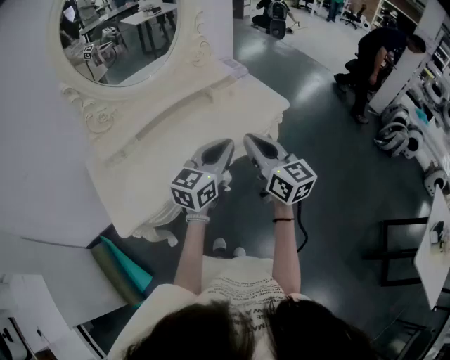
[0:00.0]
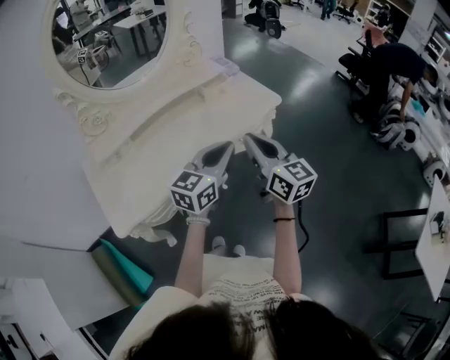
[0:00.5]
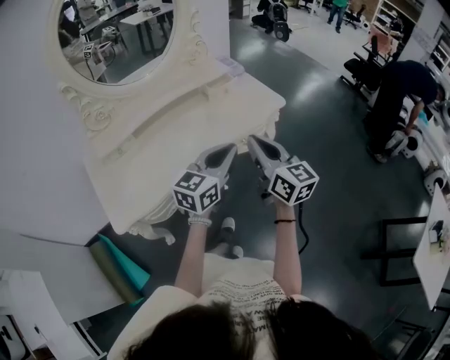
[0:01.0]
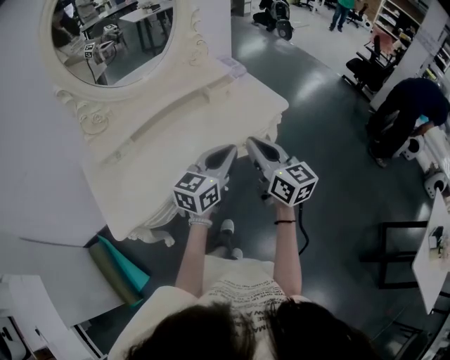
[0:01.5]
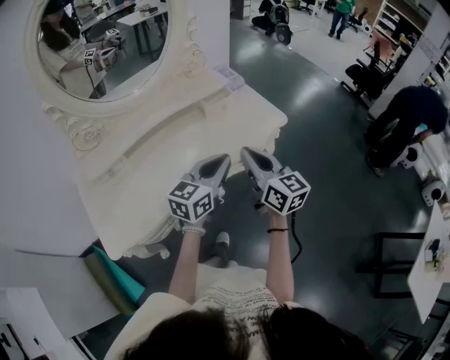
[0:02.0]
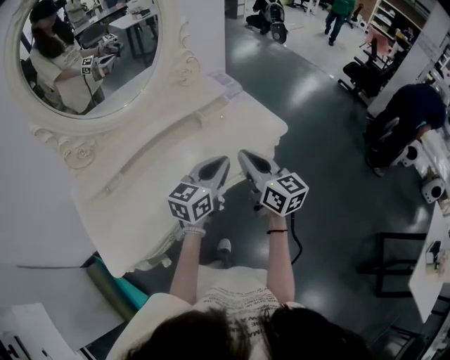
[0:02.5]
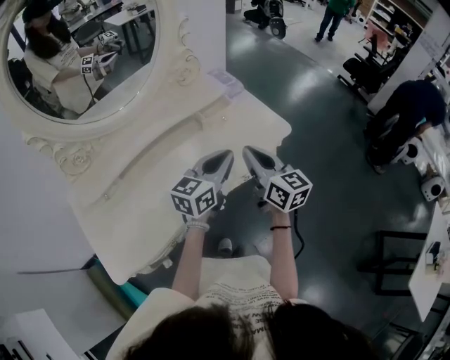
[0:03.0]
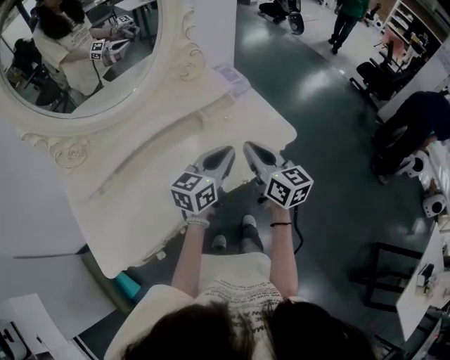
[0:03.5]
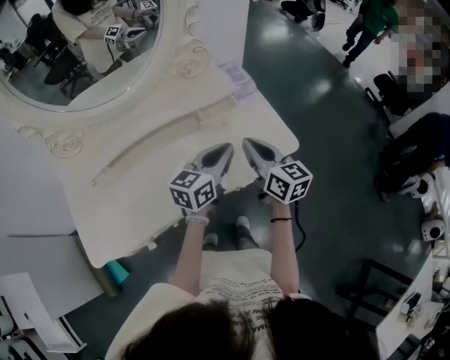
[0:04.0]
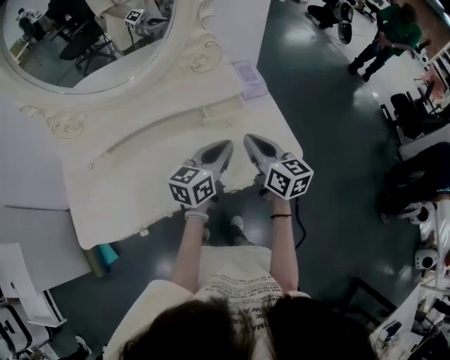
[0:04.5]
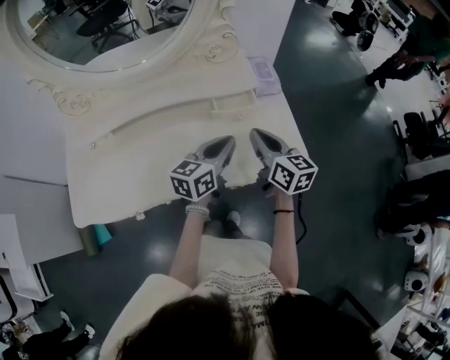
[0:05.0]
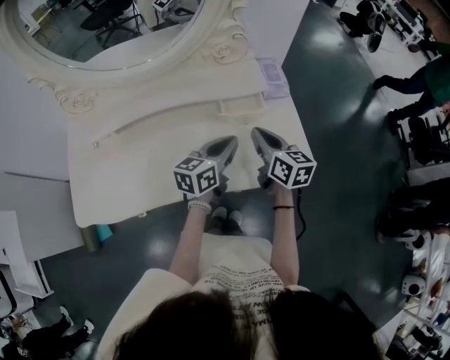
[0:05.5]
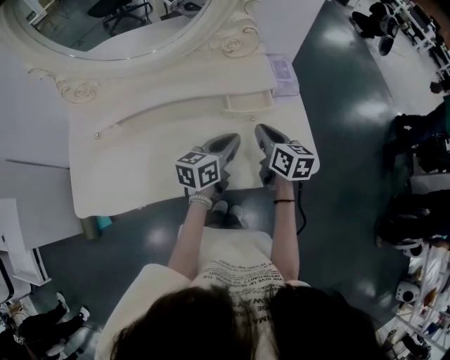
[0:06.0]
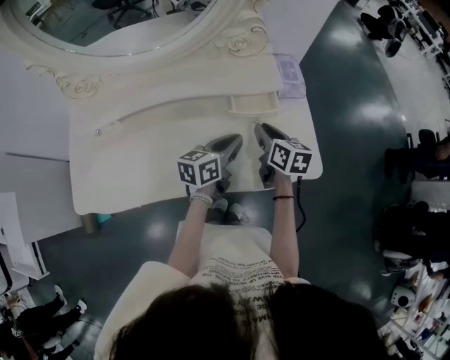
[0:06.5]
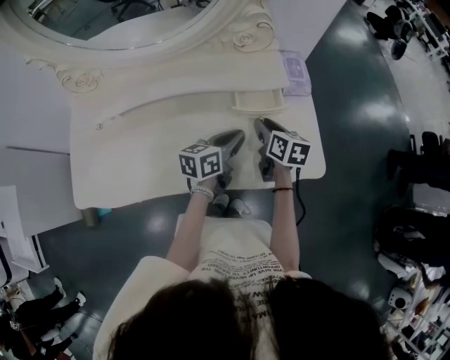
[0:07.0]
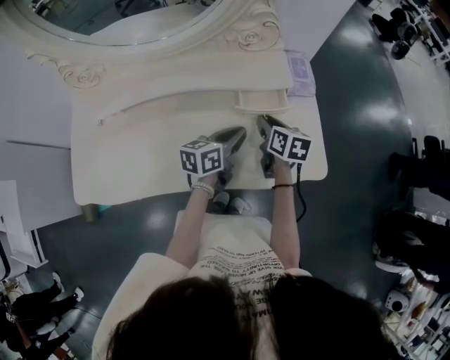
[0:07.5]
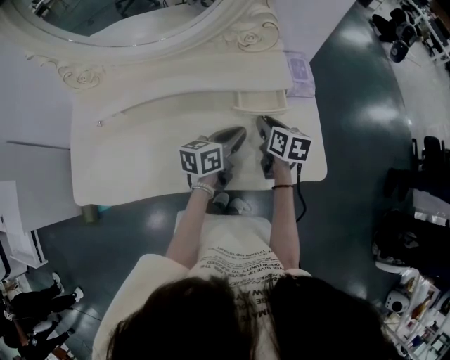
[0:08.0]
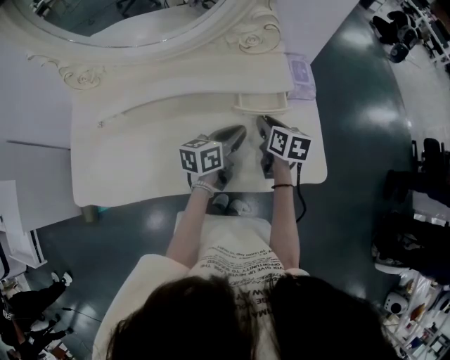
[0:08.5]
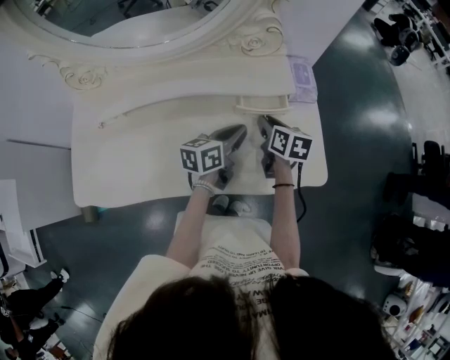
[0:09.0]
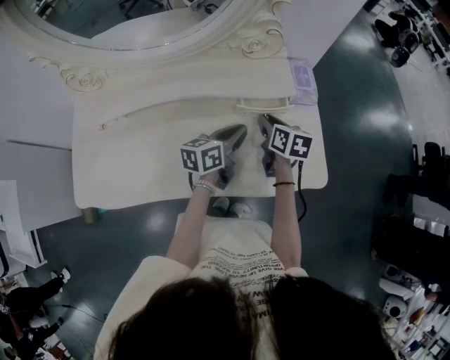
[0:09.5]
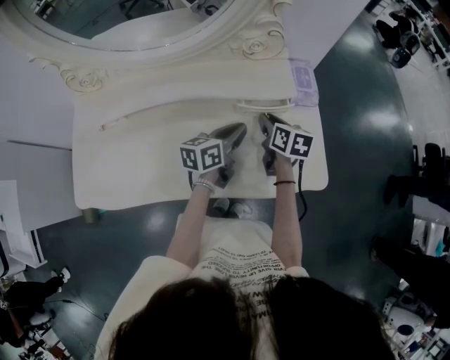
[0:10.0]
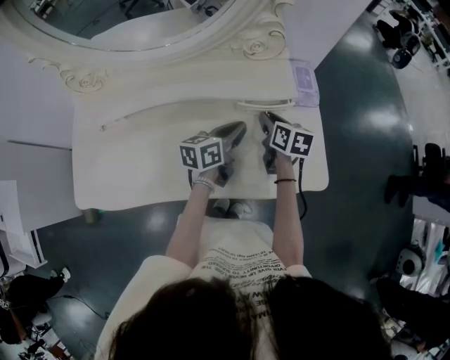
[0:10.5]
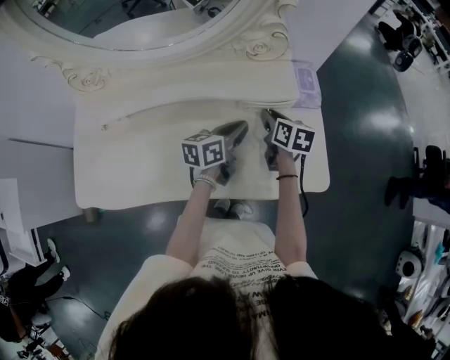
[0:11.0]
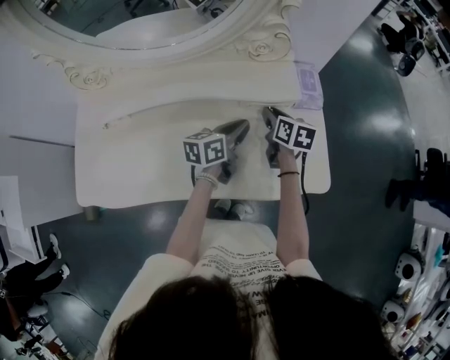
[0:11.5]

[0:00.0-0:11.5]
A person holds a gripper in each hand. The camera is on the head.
0.0 to 2.0 s: The grippers both shift forward by roughly 10 cm.
2.0 to 4.0 s: Both grippers travel together forward, roughly 20 cm.
4.0 to 6.0 s: The left gripper moves downward and forward, approximately 10 cm, and turns by about 20 degrees; the right gripper is displaced forward and downward by roughly 15 cm.
6.0 to 7.5 s: The right gripper is displaced downward by about 5 cm.
7.5 to 9.5 s: The grippers make only small movements.
9.5 to 11.5 s: The grippers stay close to where they were, moving slightly.

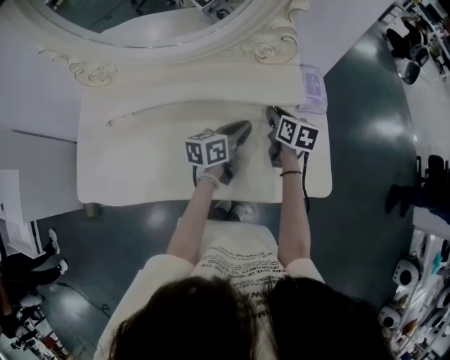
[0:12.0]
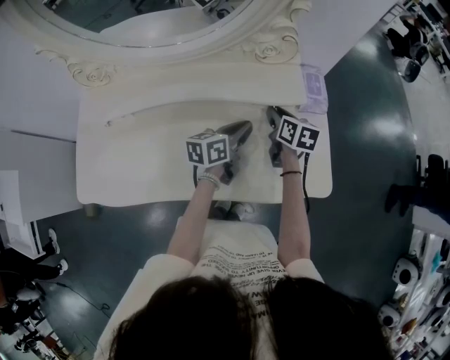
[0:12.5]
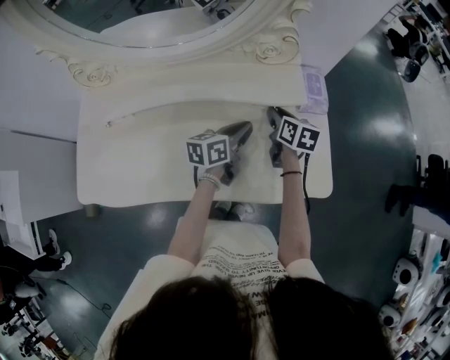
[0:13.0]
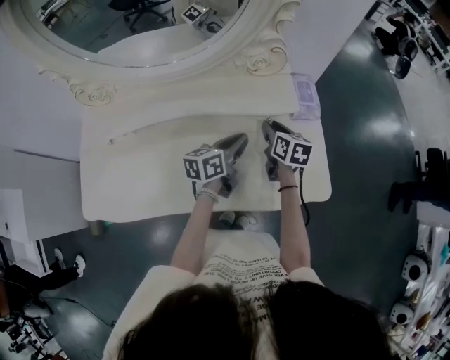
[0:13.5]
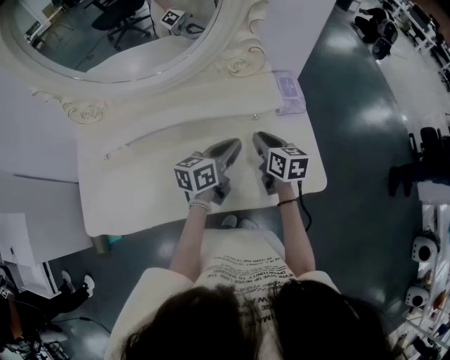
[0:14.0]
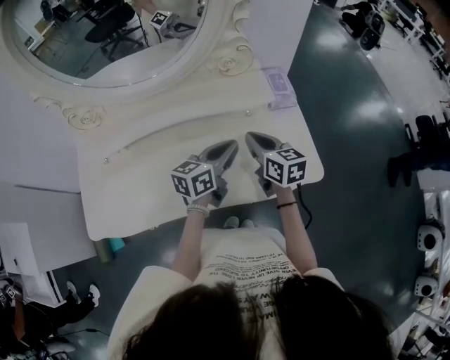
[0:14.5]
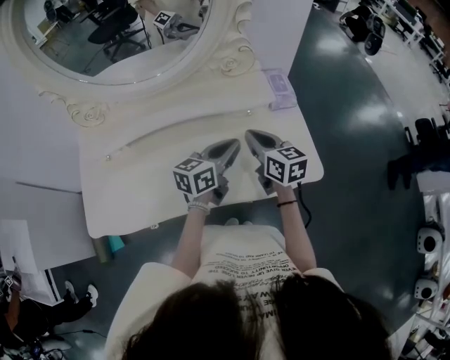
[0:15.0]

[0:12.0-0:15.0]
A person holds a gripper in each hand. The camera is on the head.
12.0 to 13.5 s: The grippers move only a little.
13.5 to 15.0 s: The left gripper travels backward and upward by approximately 10 cm. The right gripper shifts approximately 15 cm backward and upward, and closes its fingers.

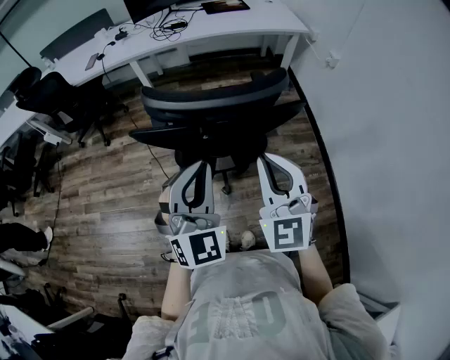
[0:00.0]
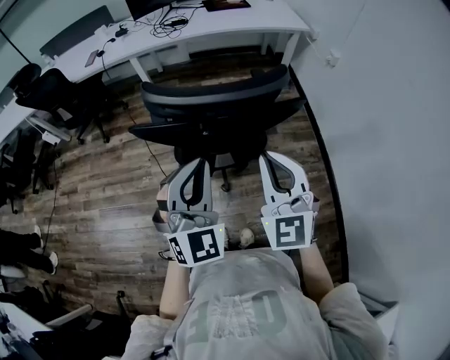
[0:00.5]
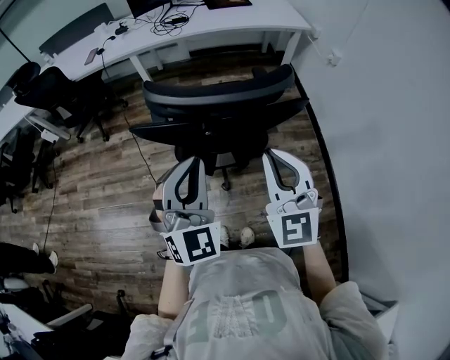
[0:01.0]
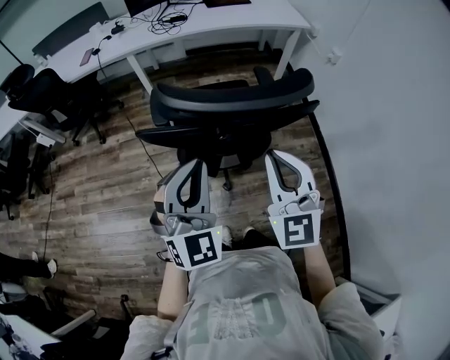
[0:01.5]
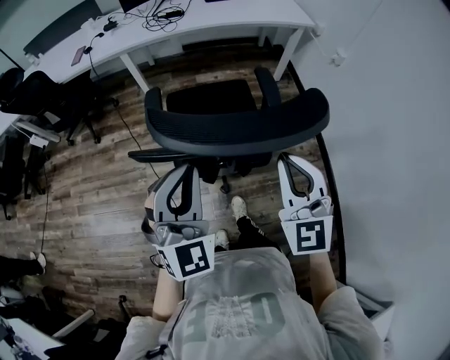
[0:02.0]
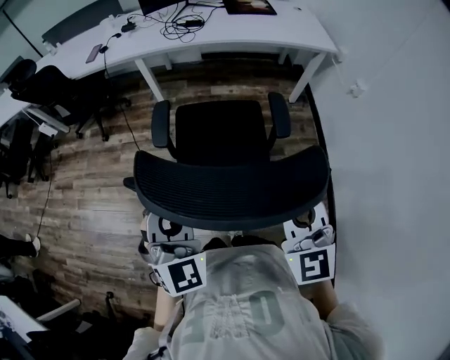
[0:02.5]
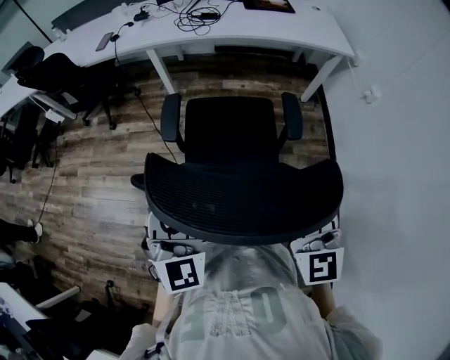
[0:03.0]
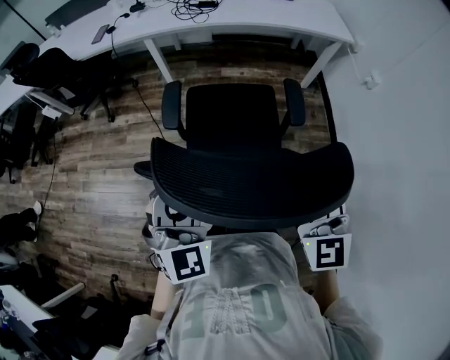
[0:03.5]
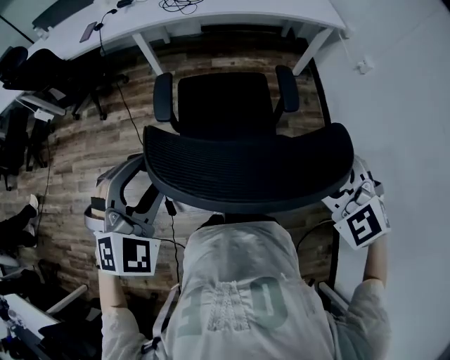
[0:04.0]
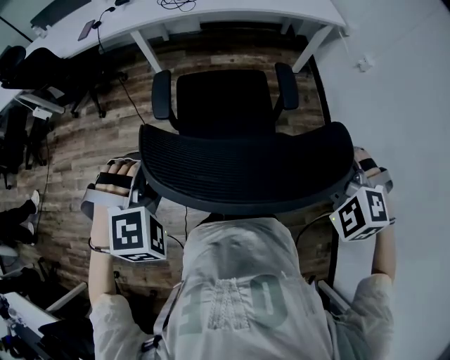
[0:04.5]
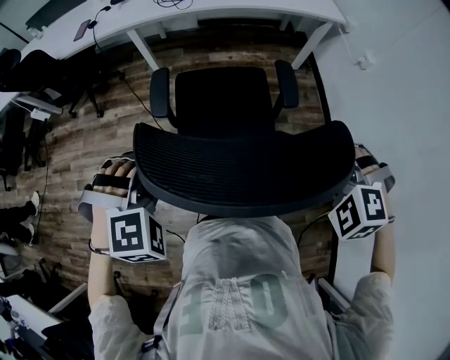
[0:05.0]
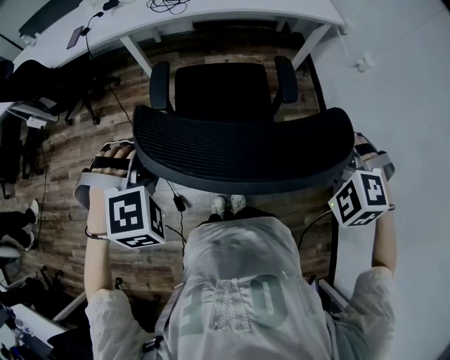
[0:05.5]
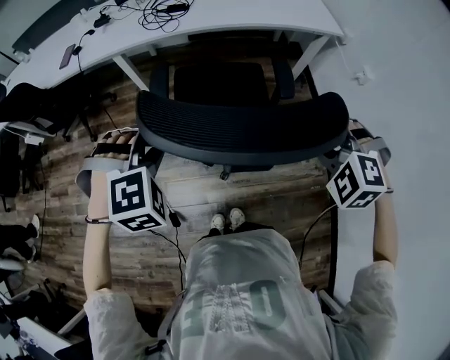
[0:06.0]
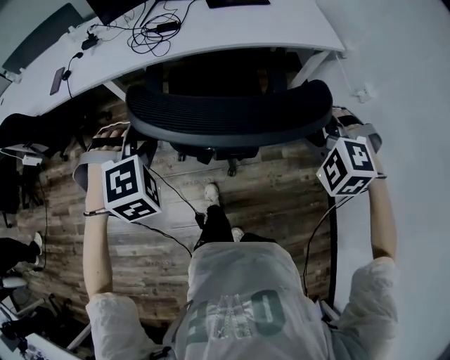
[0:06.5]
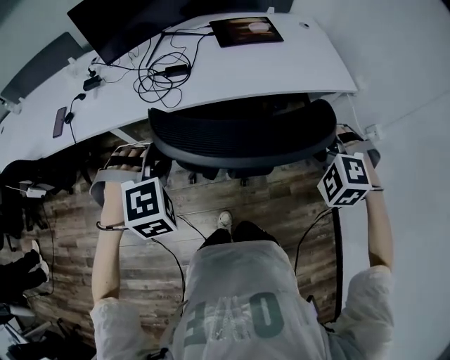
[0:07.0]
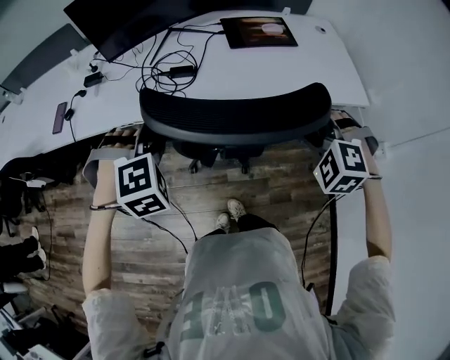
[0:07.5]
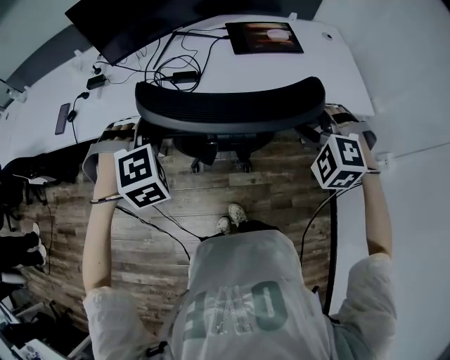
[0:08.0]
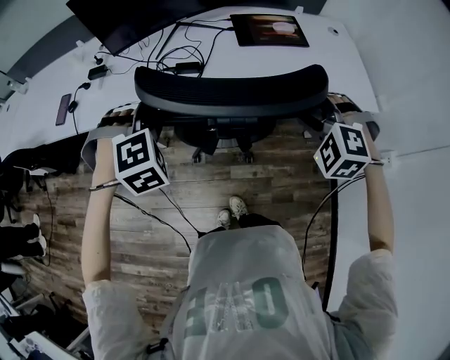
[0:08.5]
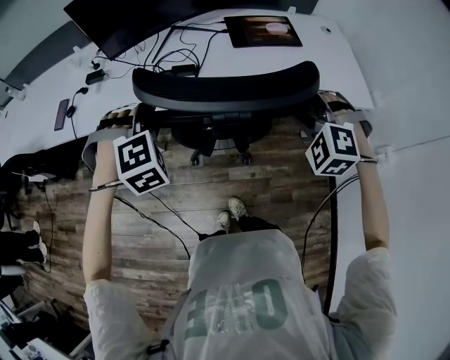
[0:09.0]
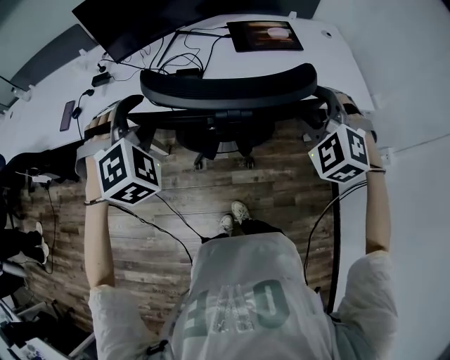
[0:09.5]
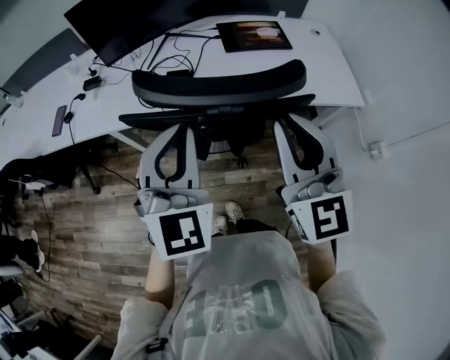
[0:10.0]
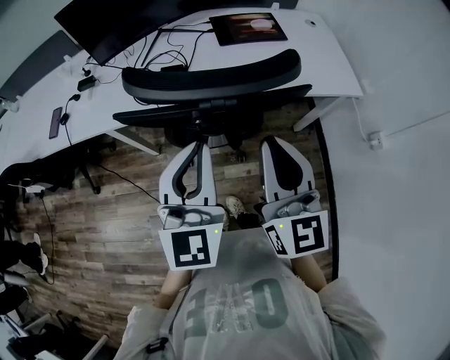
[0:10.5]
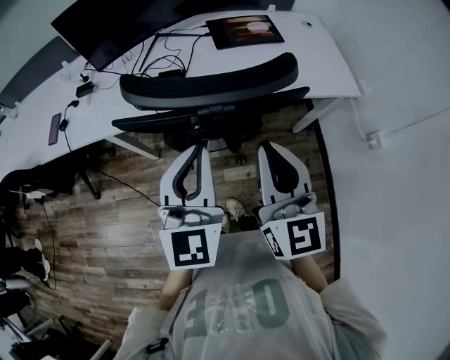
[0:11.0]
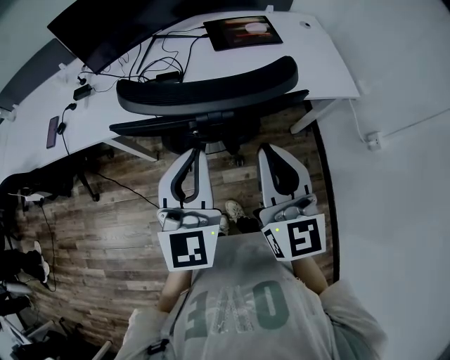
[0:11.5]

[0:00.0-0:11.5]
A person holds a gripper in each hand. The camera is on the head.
0.0 to 2.0 s: Both grippers travel together forward, some 5 cm.
2.0 to 4.0 s: The left gripper is displaced to the left and forward by some 10 cm, tilts its fingers about 30 degrees downward, and opens. Meanwhile the right gripper moves approximately 5 cm, points its fingers some 30 degrees further downward, and opens.
4.0 to 6.0 s: The left gripper moves forward, approximately 20 cm, and rotates approximately 30 degrees. The right gripper travels forward and to the right by approximately 20 cm, changes its angle by approximately 30 degrees, and closes.
6.0 to 7.5 s: Both grippers travel together forward, approximately 40 cm.
7.5 to 9.5 s: Both grippers travel together upward, roughly 5 cm. The left gripper rotates roughly 20 degrees.
9.5 to 11.5 s: The left gripper travels to the right and backward by approximately 15 cm, rotates around the line of its fingers by approximately 60 degrees, counterclockwise from behind, and closes. The right gripper shifts about 15 cm backward, to the left and upward, twists some 60 degrees clockwise, seen from behind, and closes up.

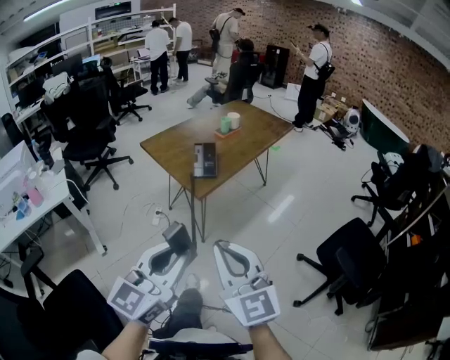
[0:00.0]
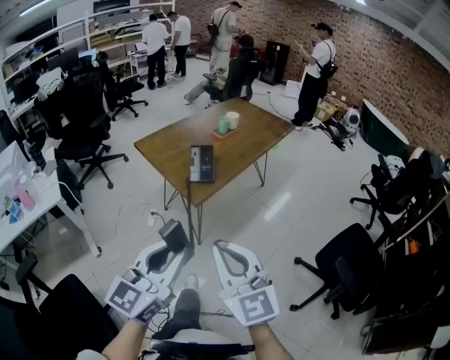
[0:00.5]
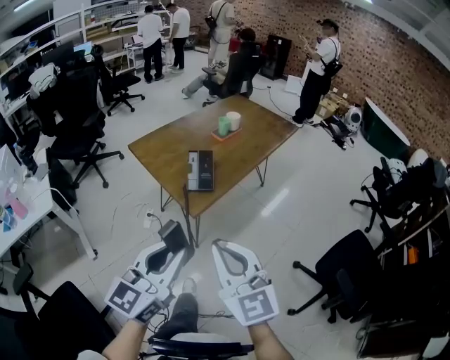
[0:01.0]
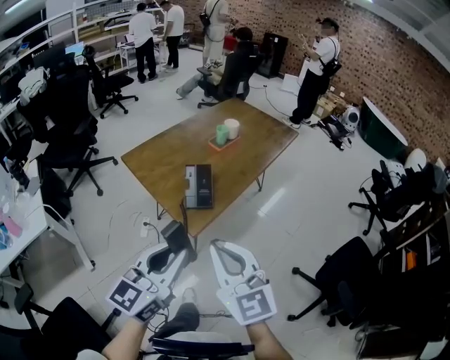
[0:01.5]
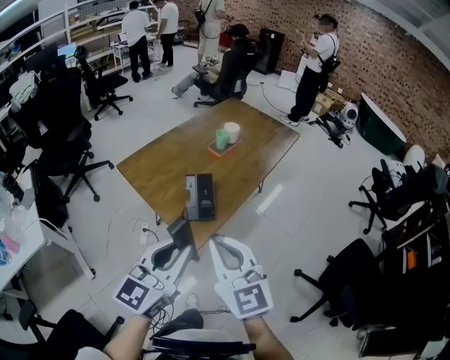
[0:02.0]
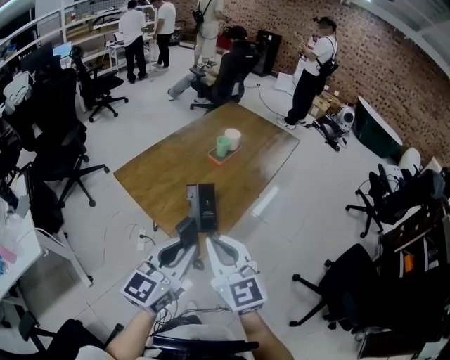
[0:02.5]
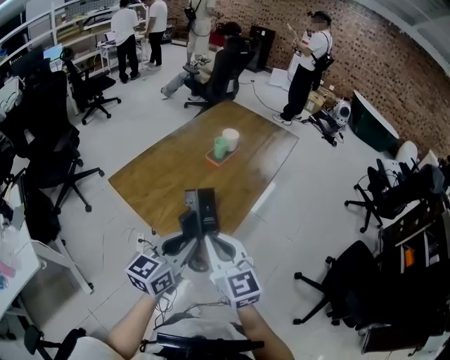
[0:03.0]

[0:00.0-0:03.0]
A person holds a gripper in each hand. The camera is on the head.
0.0 to 1.5 s: The two grippers go some 20 cm forward.
1.5 to 3.0 s: The left gripper heads forward and downward, covering roughly 20 cm. The right gripper is displaced forward by about 15 cm.
